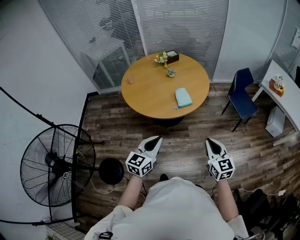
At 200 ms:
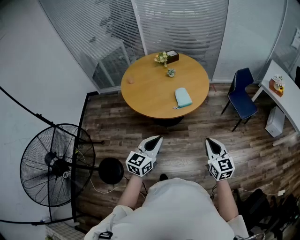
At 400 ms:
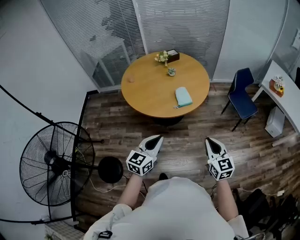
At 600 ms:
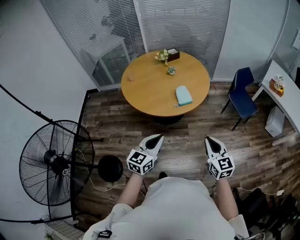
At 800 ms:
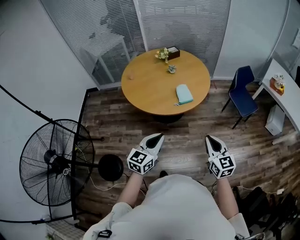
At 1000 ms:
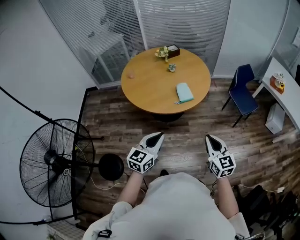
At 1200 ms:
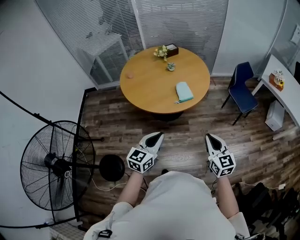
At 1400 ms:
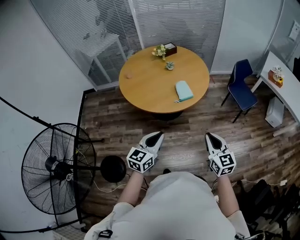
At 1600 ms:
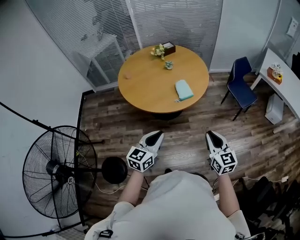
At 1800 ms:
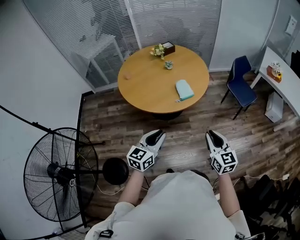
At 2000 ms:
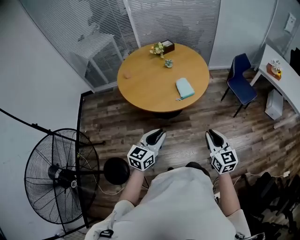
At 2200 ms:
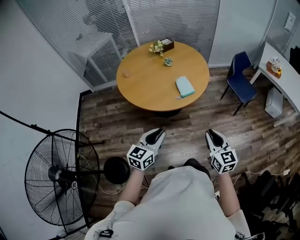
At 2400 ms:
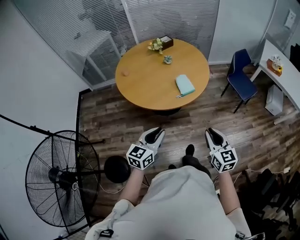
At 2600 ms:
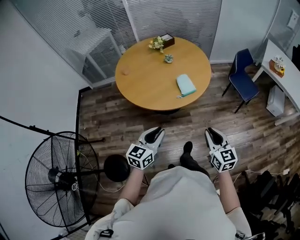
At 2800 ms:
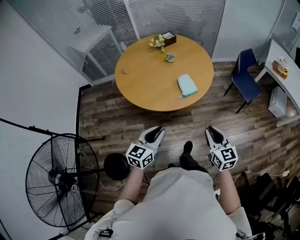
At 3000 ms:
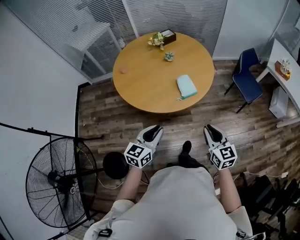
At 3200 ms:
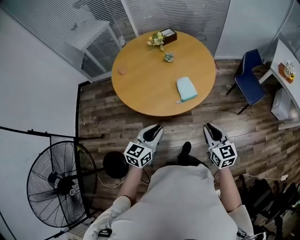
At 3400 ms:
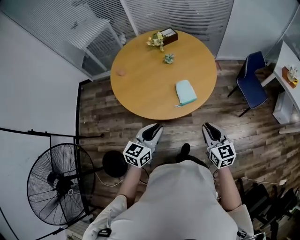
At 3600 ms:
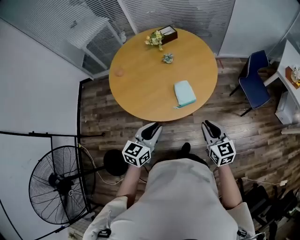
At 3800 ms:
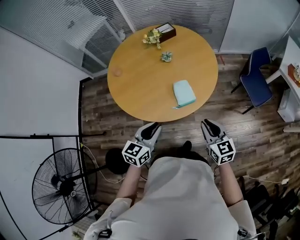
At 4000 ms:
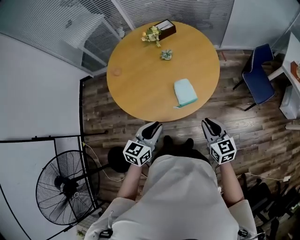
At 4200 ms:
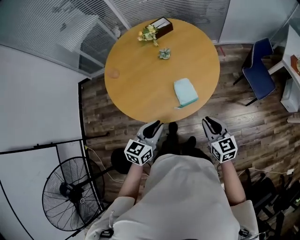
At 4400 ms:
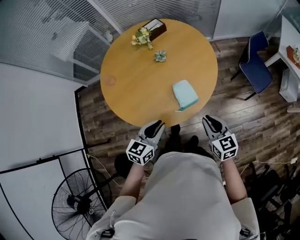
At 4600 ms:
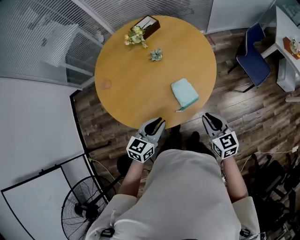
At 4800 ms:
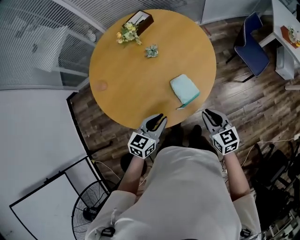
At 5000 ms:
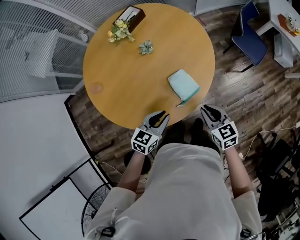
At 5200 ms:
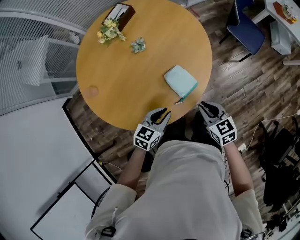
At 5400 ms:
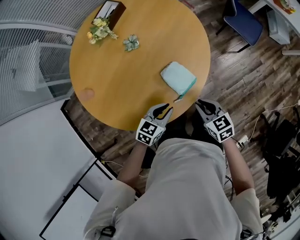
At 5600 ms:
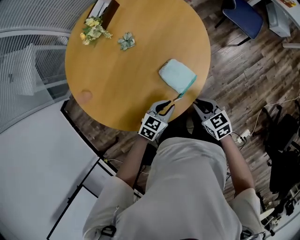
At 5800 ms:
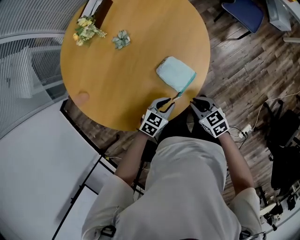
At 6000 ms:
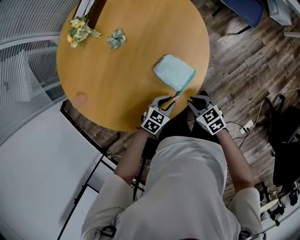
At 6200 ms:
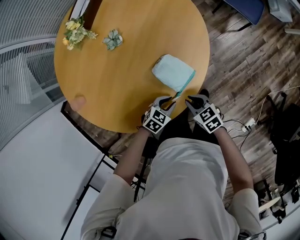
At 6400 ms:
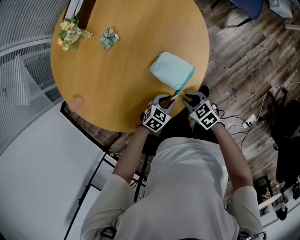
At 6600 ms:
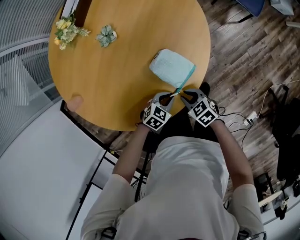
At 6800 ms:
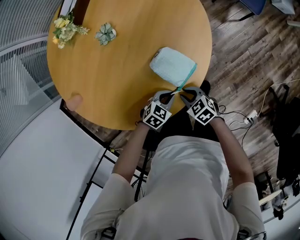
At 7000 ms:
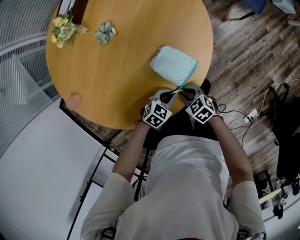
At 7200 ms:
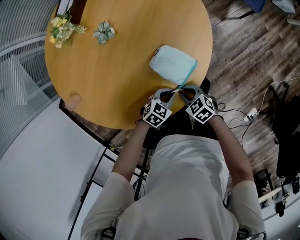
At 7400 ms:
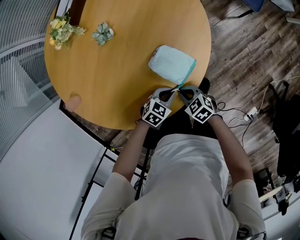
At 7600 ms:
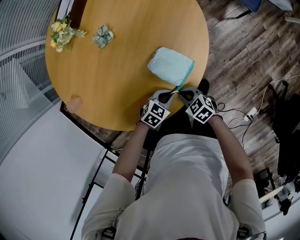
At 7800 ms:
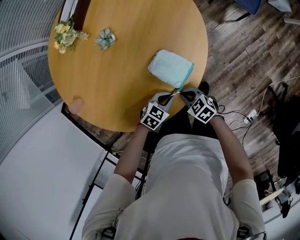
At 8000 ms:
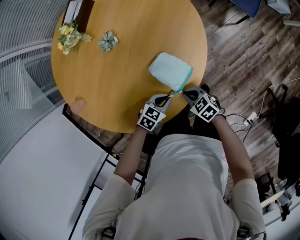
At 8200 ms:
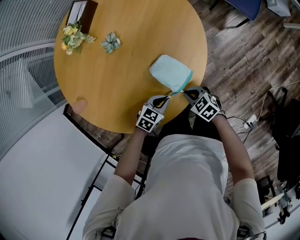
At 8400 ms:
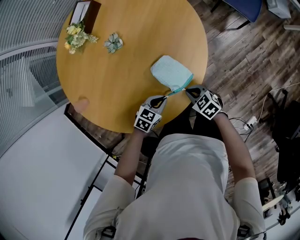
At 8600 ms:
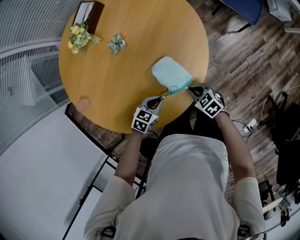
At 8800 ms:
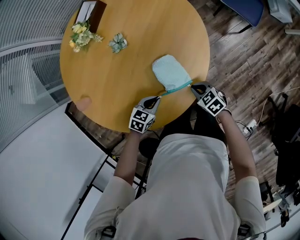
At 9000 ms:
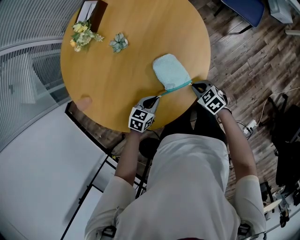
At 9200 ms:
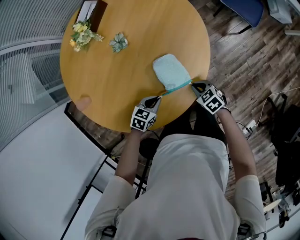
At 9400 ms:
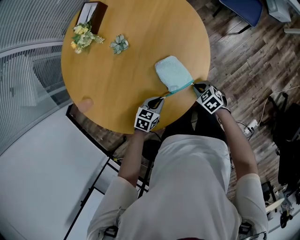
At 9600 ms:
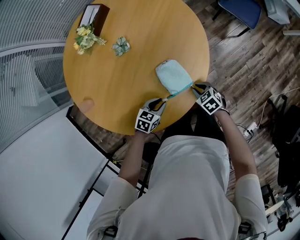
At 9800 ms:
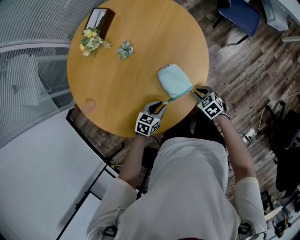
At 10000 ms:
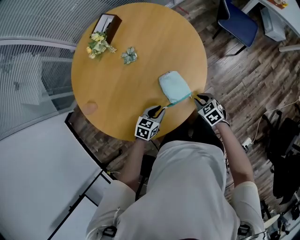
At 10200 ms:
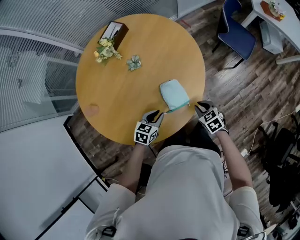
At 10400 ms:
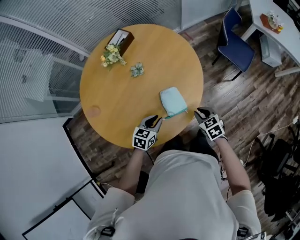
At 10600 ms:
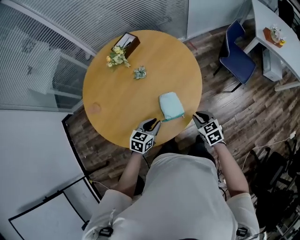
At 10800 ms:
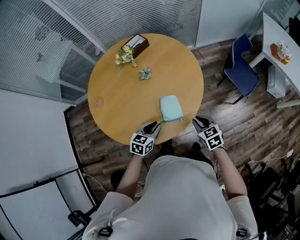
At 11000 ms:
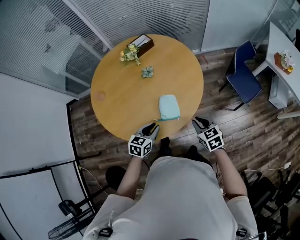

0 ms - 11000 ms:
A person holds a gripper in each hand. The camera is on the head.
0 ms - 1600 ms: The right gripper ends up about 5 cm from where it was; the left gripper ends up roughly 5 cm from where it was.
1600 ms - 3200 ms: The two grippers go roughly 20 cm forward.
3200 ms - 4800 ms: The right gripper moves forward and downward, some 25 cm; the left gripper is displaced forward by roughly 25 cm, and rotates about 20 degrees.
4800 ms - 6200 ms: The two grippers go about 25 cm downward. The left gripper swivels about 50 degrees. Meanwhile the right gripper swivels roughly 20 degrees.
7800 ms - 9400 ms: The left gripper ends up approximately 10 cm from where it was. Meanwhile the right gripper moves roughly 10 cm.
9400 ms - 11000 ms: The grippers both shift upward by roughly 25 cm. The left gripper rotates approximately 40 degrees, while the right gripper swivels some 20 degrees.

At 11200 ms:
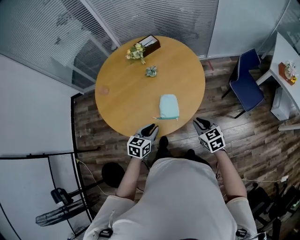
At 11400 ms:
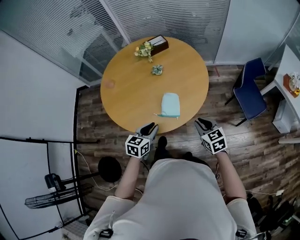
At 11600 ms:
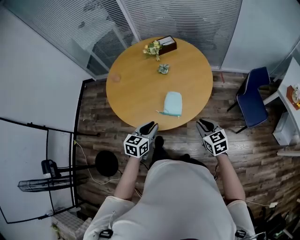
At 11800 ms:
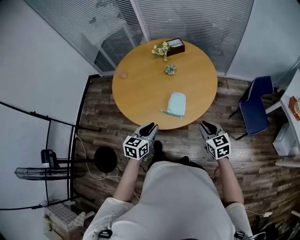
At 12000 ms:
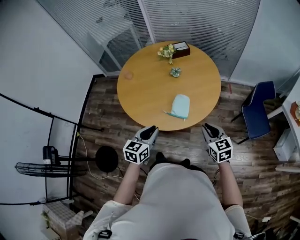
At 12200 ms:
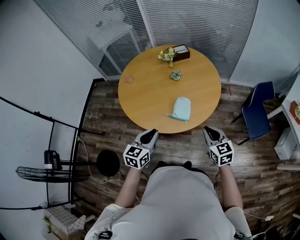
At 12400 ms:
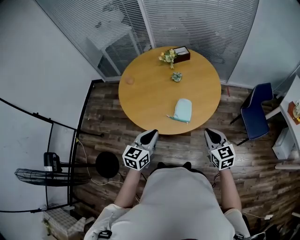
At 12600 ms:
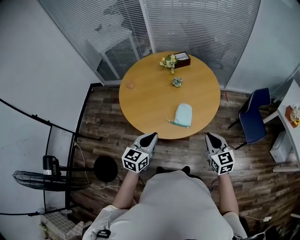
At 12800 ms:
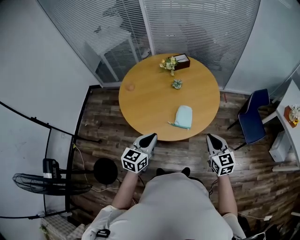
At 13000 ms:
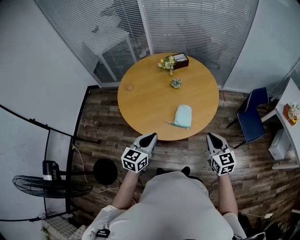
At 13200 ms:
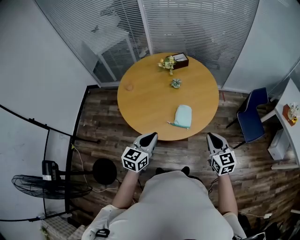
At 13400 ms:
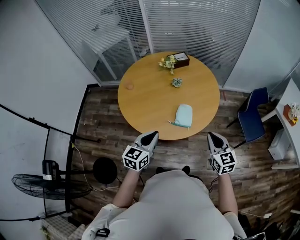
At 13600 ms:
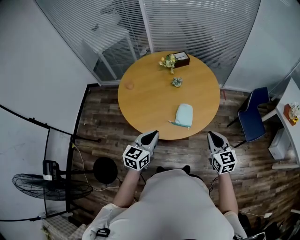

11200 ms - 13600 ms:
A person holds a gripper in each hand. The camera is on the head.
11200 ms - 12400 ms: Both grippers travel together upward and backward, approximately 15 cm. The left gripper changes its angle by some 20 degrees.
12400 ms - 13600 ms: The grippers make only small movements.

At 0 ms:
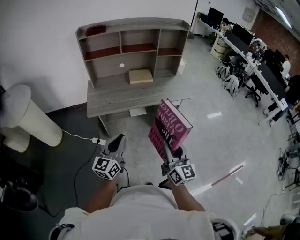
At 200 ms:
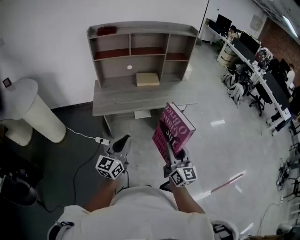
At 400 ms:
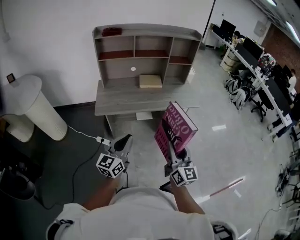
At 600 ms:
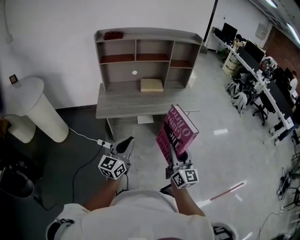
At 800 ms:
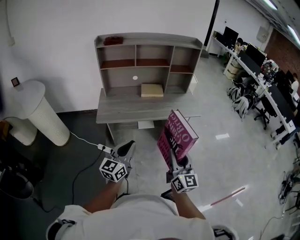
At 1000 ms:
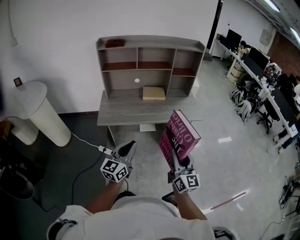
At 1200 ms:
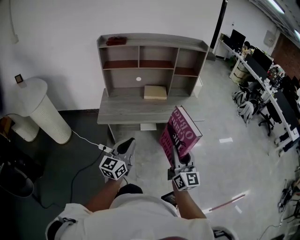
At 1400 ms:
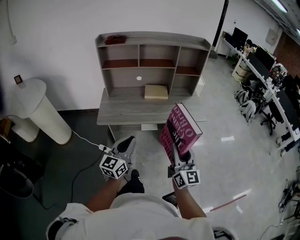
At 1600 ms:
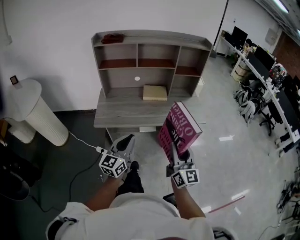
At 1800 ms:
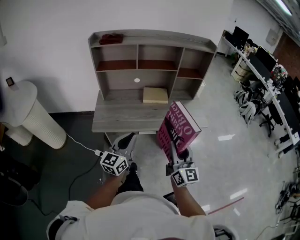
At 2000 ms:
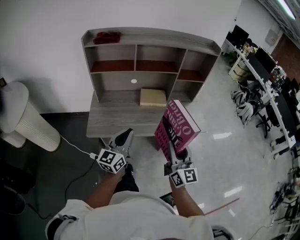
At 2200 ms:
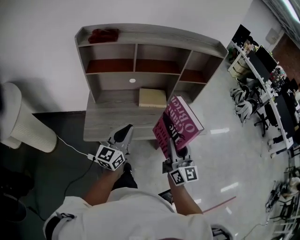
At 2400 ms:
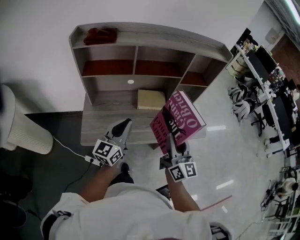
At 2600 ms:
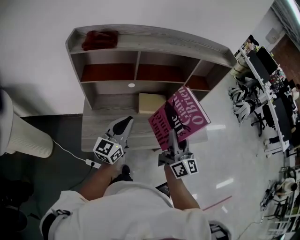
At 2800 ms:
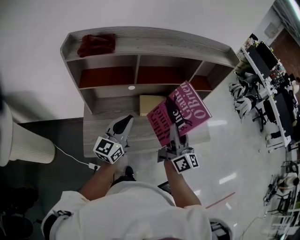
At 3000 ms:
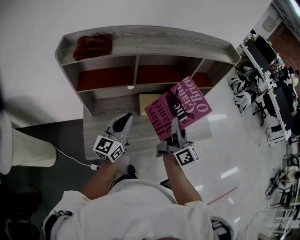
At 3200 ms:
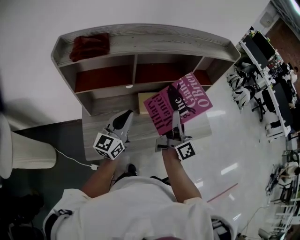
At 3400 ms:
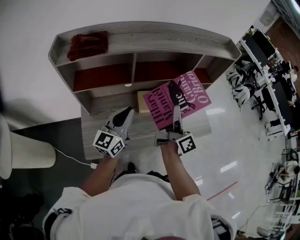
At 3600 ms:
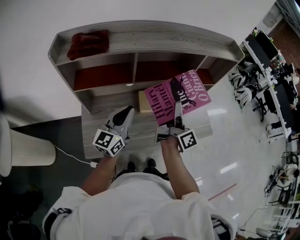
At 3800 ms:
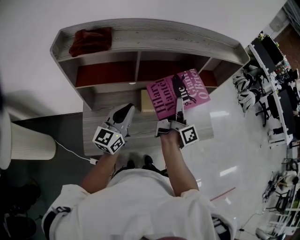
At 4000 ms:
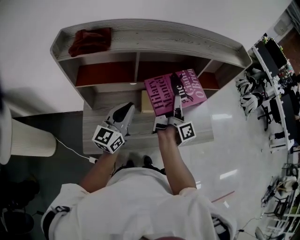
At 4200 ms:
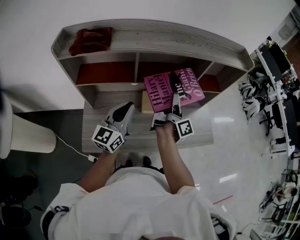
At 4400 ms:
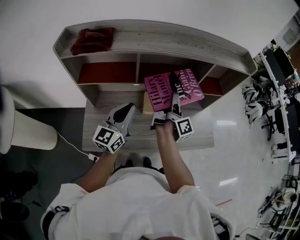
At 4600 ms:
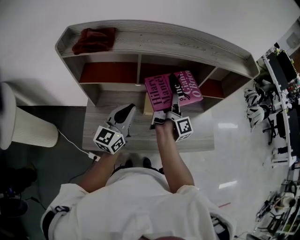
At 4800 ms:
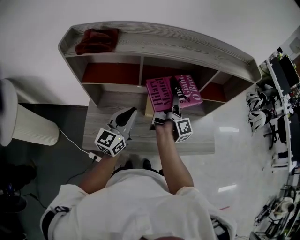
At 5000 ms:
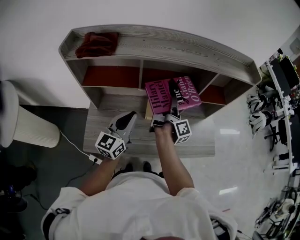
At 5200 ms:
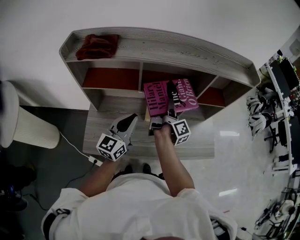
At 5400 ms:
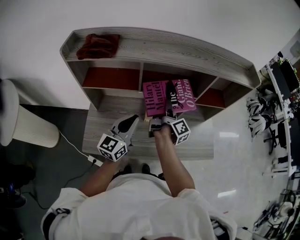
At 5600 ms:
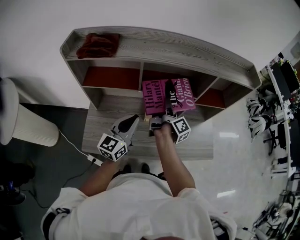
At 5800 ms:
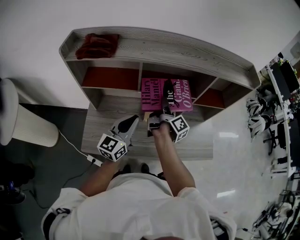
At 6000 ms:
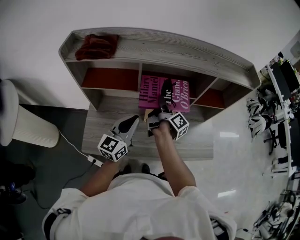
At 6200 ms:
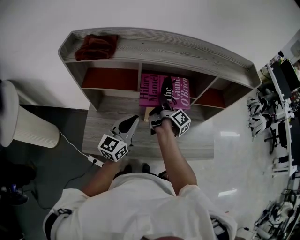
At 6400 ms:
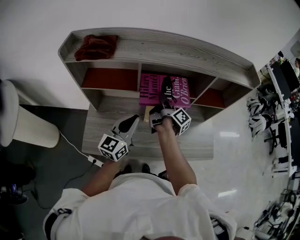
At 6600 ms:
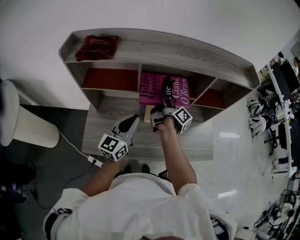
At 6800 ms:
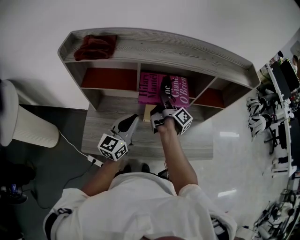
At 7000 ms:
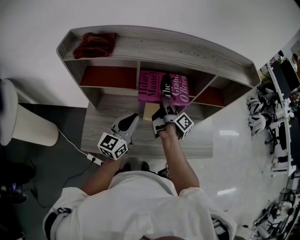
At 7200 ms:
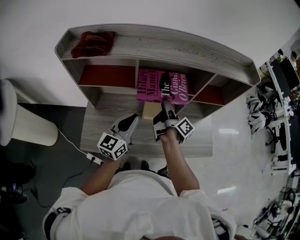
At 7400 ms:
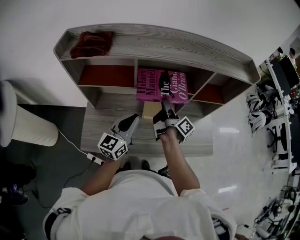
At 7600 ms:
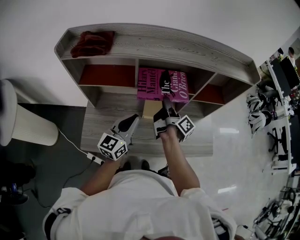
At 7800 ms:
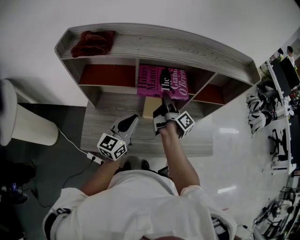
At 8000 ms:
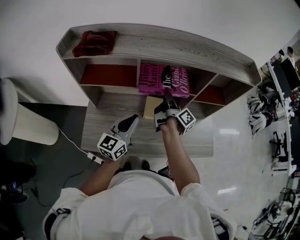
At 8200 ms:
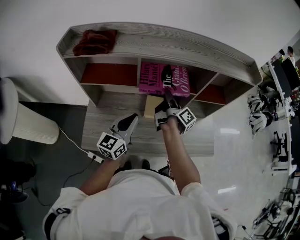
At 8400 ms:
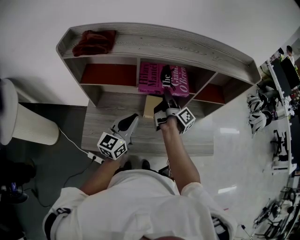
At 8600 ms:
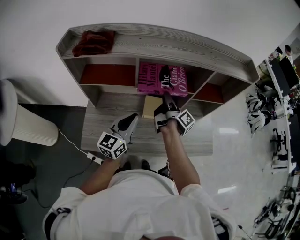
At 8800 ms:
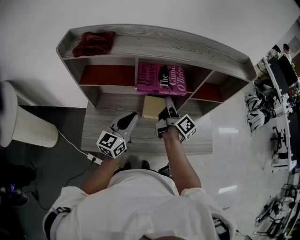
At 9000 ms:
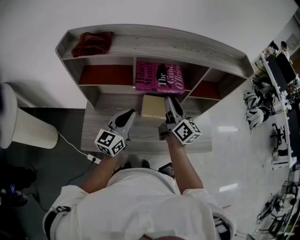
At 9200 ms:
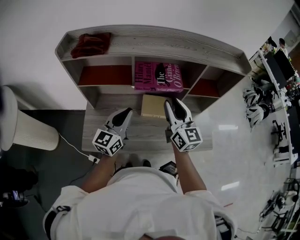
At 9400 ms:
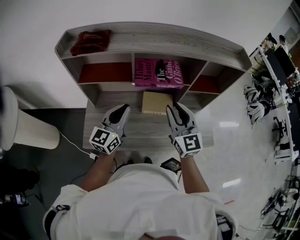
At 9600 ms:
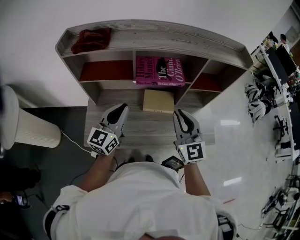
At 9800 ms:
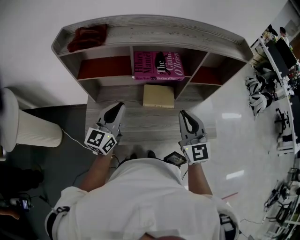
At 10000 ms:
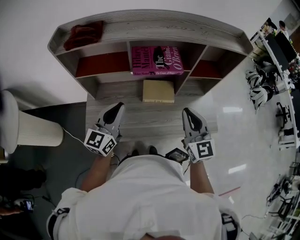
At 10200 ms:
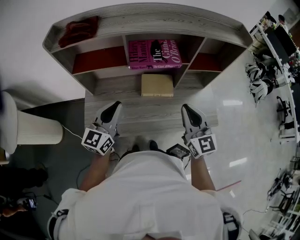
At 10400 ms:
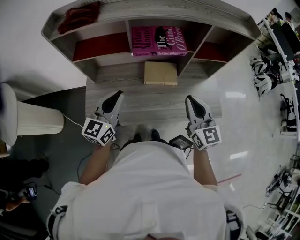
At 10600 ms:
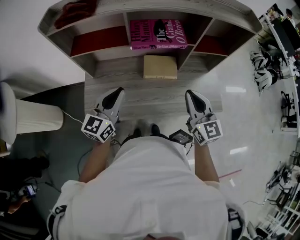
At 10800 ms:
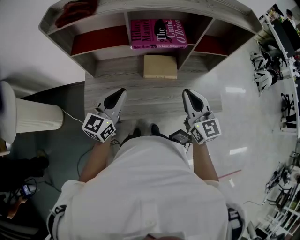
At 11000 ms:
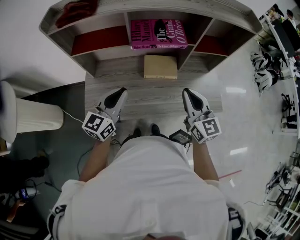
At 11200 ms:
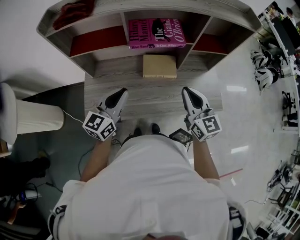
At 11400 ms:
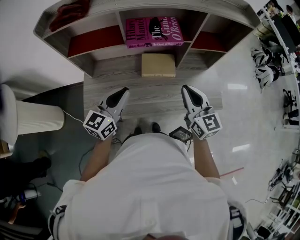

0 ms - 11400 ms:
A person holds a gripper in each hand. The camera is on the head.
0 ms - 1400 ms: Both grippers move forward, approximately 5 cm.
1400 ms - 2800 ms: The two grippers go approximately 40 cm forward. The right gripper changes its angle by approximately 20 degrees.
2800 ms - 4200 ms: The right gripper is displaced forward by some 15 cm, and rolls clockwise, seen from behind, by about 50 degrees; the left gripper travels forward by about 5 cm.
4200 ms - 5600 ms: The right gripper moves to the left, roughly 5 cm.
5600 ms - 8600 ms: The grippers make only small movements.
8600 ms - 10000 ms: The left gripper moves approximately 10 cm; the right gripper is displaced backward and upward by some 20 cm, twists about 90 degrees counterclockwise, seen from behind, and closes its fingers.
10000 ms - 11400 ms: Both grippers travel together downward, roughly 5 cm.
